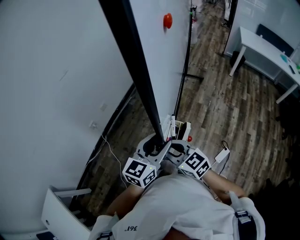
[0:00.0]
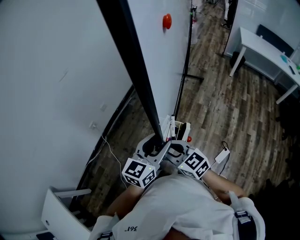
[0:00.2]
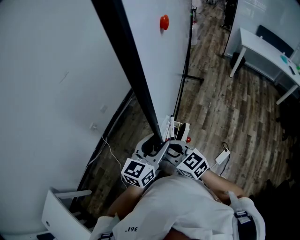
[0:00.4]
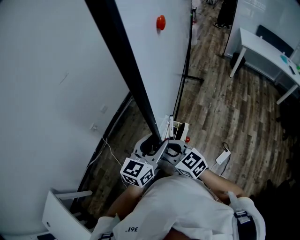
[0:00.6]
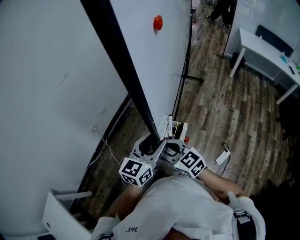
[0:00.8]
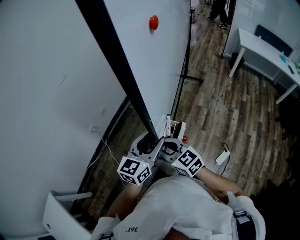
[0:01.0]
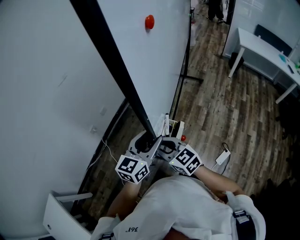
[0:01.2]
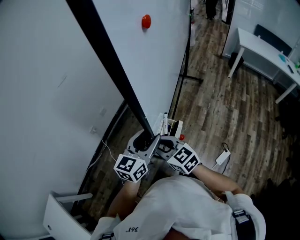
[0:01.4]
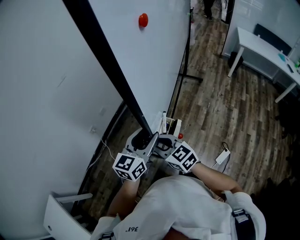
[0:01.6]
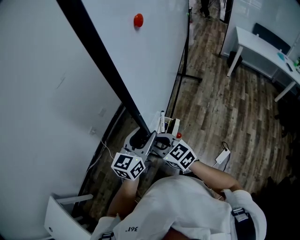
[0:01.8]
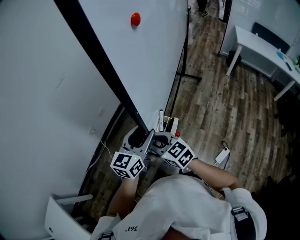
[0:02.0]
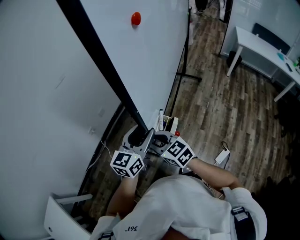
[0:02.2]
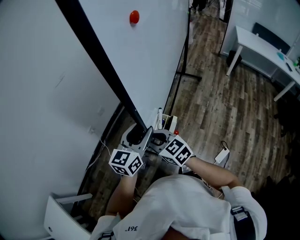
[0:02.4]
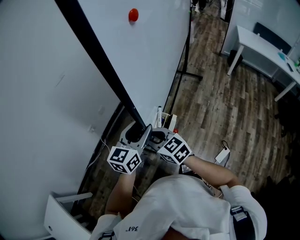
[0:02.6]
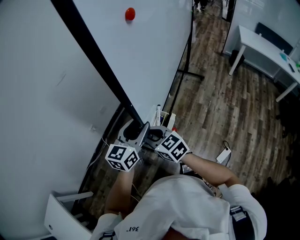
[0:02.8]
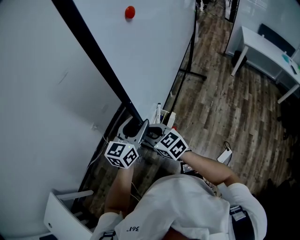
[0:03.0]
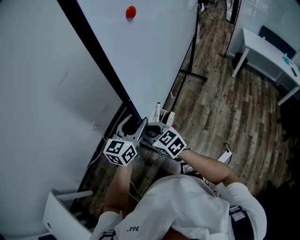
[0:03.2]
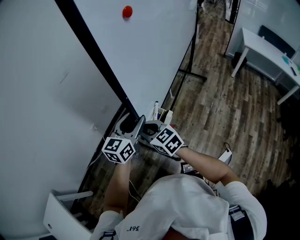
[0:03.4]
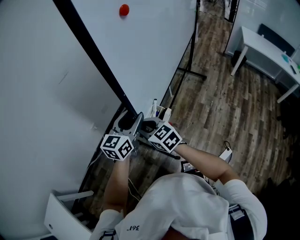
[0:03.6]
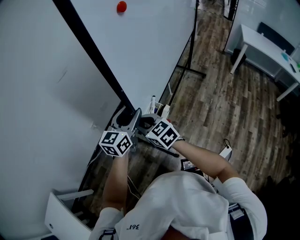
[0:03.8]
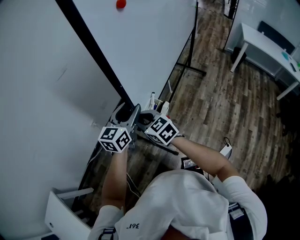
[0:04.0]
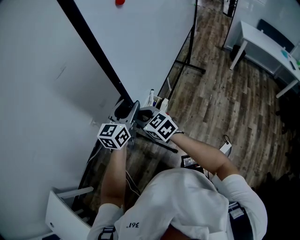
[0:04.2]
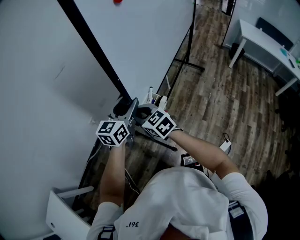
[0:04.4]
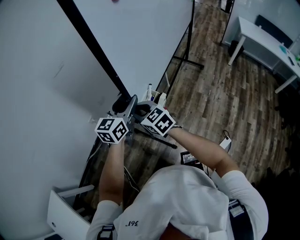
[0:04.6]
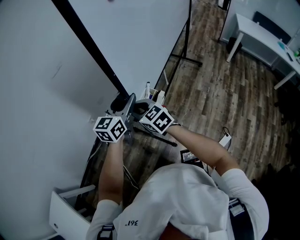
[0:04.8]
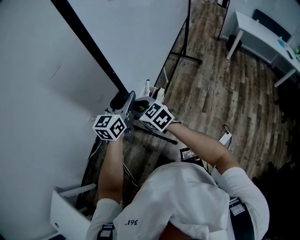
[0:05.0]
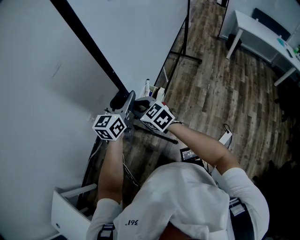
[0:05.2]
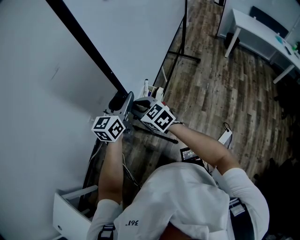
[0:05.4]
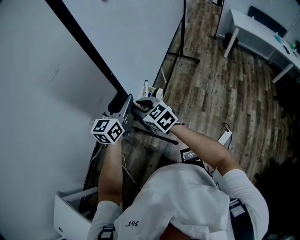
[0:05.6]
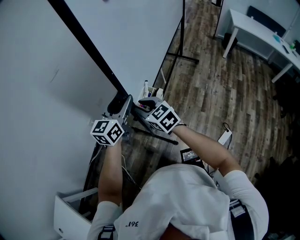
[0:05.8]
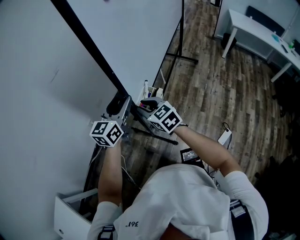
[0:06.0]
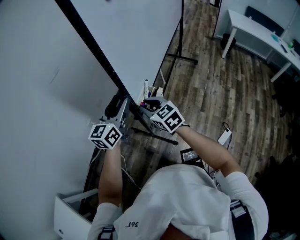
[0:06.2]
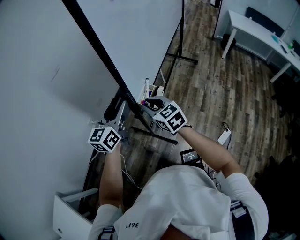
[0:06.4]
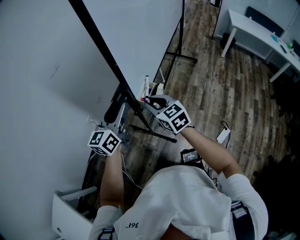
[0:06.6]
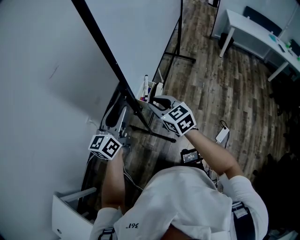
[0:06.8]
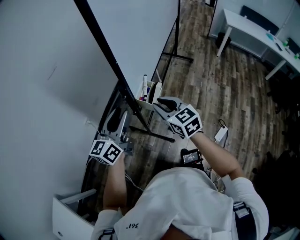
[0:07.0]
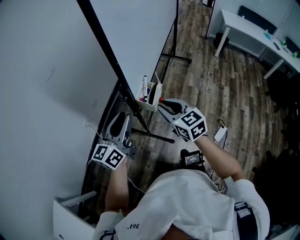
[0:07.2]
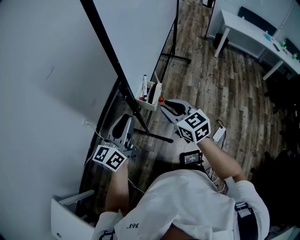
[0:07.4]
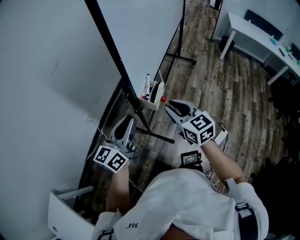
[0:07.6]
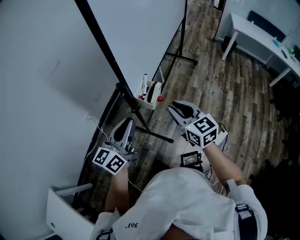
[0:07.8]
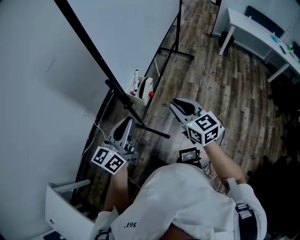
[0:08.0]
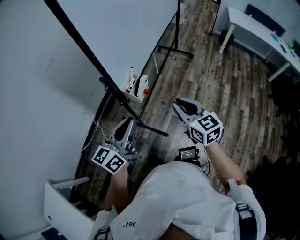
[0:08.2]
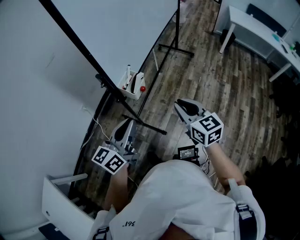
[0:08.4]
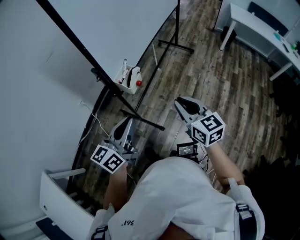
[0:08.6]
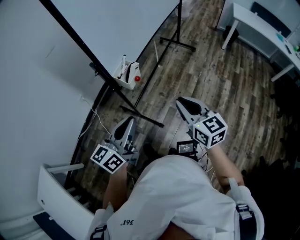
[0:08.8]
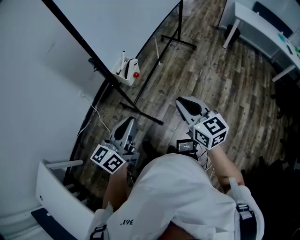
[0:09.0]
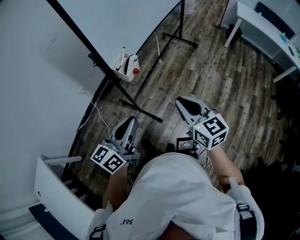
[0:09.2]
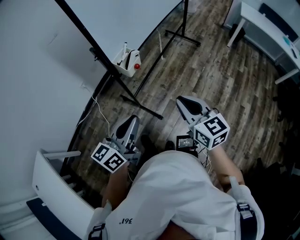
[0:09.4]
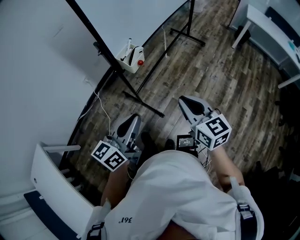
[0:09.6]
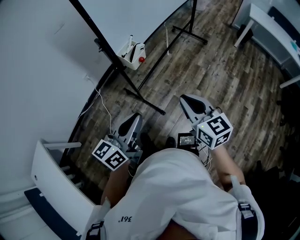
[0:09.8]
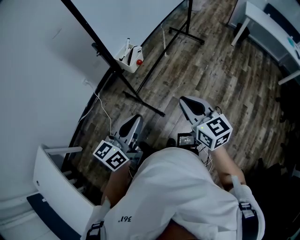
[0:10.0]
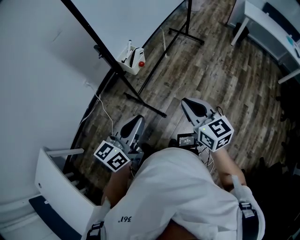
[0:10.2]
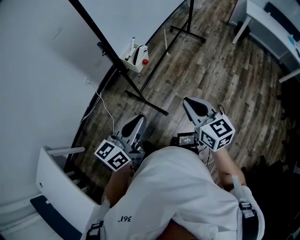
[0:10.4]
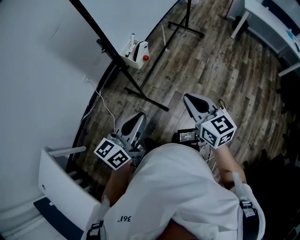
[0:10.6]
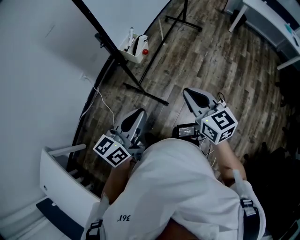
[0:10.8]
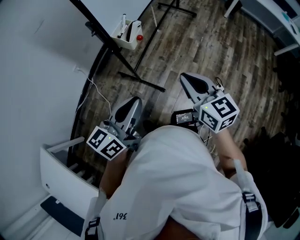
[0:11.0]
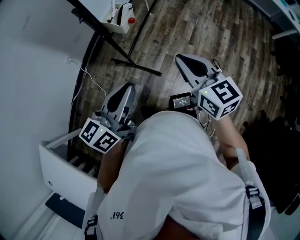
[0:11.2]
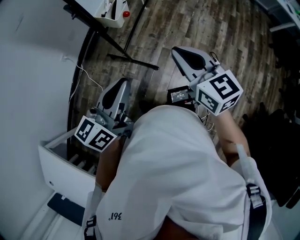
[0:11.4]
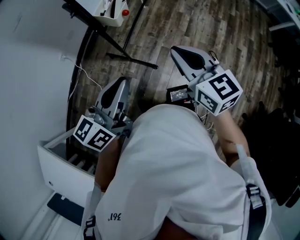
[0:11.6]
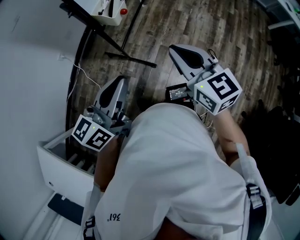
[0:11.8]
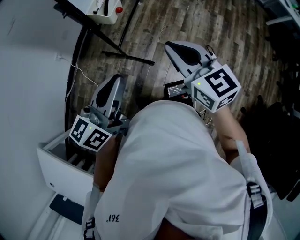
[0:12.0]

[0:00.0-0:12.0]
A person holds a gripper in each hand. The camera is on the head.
0:00.0 to 0:01.6: Both grippers travel together forward, about 5 cm.
0:01.6 to 0:03.0: The two grippers go approximately 5 cm forward.
0:03.0 to 0:04.4: Both grippers move forward, approximately 5 cm.
0:04.4 to 0:06.0: The grippers make only small movements.
0:06.0 to 0:07.6: The left gripper travels backward by about 15 cm, and closes. The right gripper goes roughly 15 cm to the right and backward.
0:07.6 to 0:09.0: The two grippers go some 20 cm to the right and backward.
0:09.0 to 0:10.4: The grippers make only small movements.
0:10.4 to 0:12.0: The right gripper goes roughly 5 cm to the left.

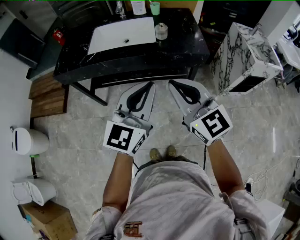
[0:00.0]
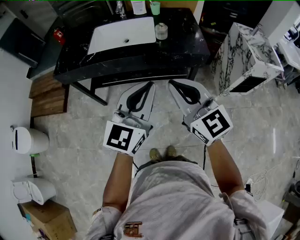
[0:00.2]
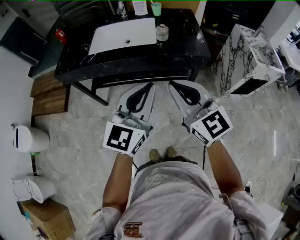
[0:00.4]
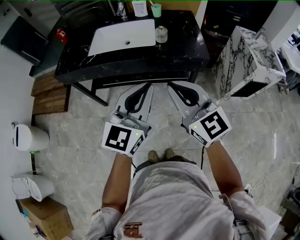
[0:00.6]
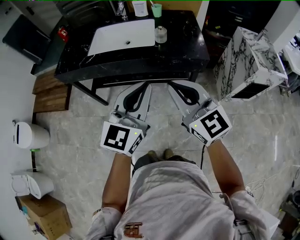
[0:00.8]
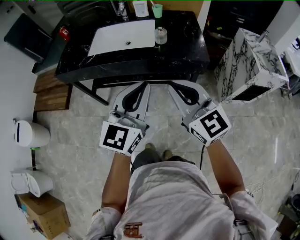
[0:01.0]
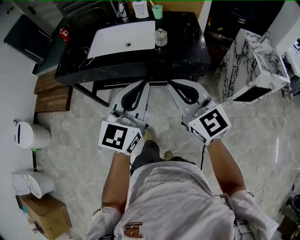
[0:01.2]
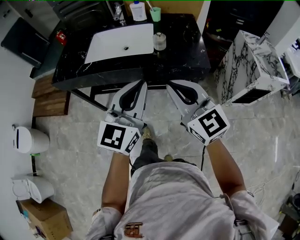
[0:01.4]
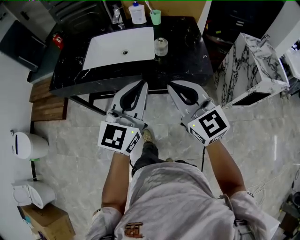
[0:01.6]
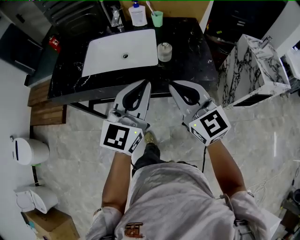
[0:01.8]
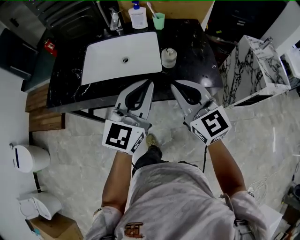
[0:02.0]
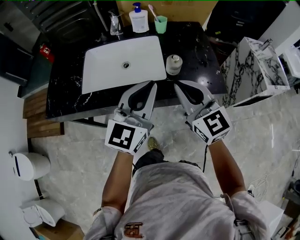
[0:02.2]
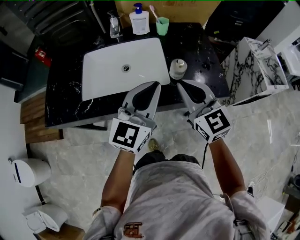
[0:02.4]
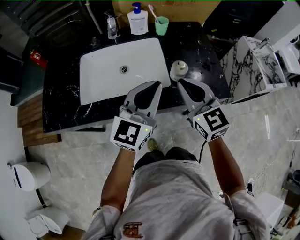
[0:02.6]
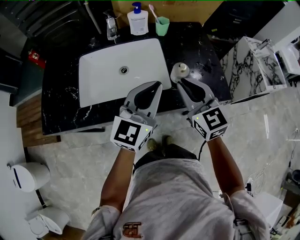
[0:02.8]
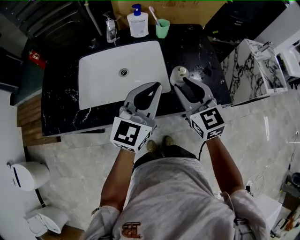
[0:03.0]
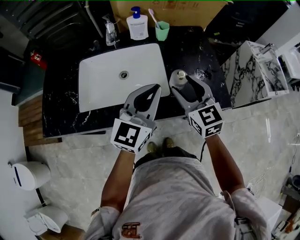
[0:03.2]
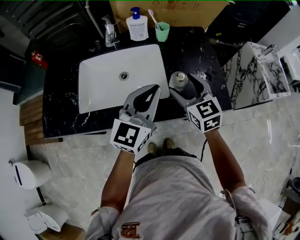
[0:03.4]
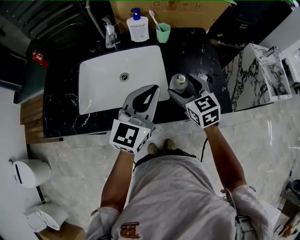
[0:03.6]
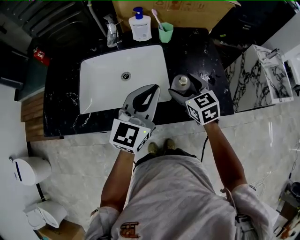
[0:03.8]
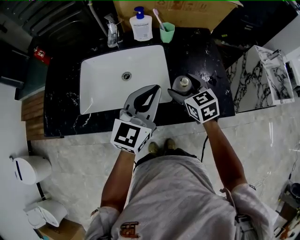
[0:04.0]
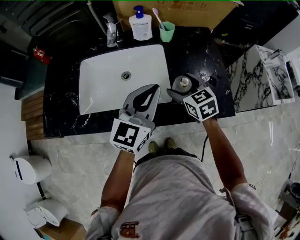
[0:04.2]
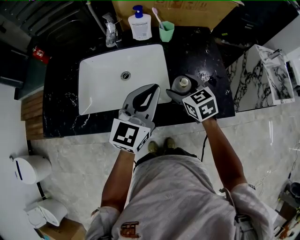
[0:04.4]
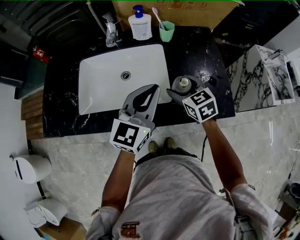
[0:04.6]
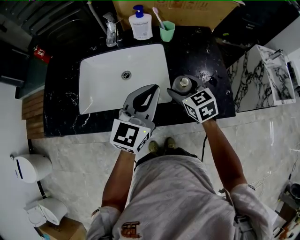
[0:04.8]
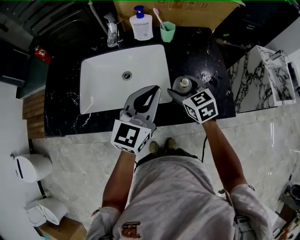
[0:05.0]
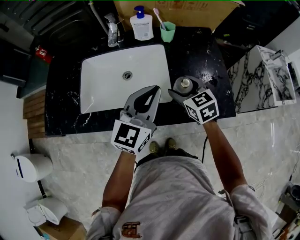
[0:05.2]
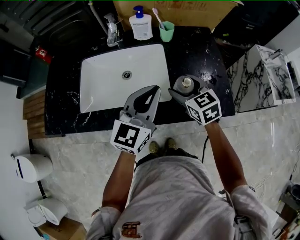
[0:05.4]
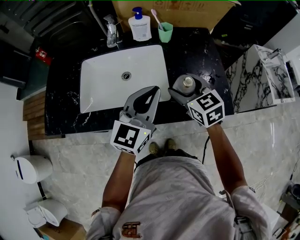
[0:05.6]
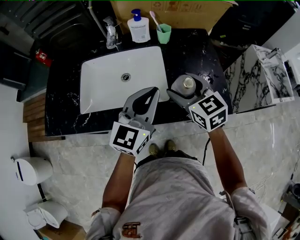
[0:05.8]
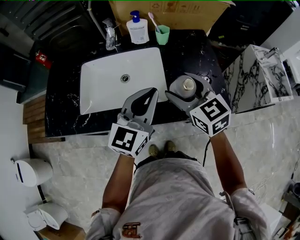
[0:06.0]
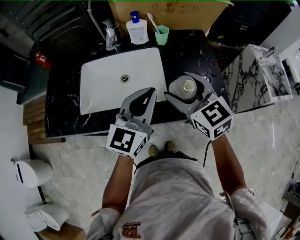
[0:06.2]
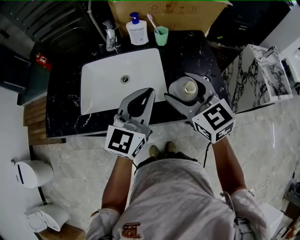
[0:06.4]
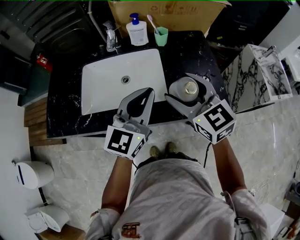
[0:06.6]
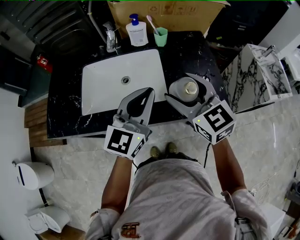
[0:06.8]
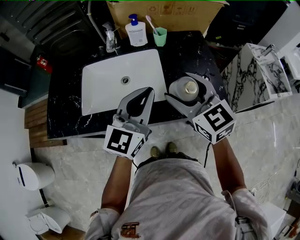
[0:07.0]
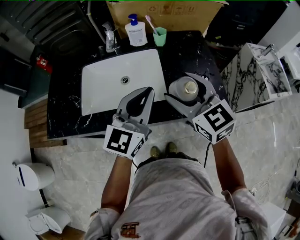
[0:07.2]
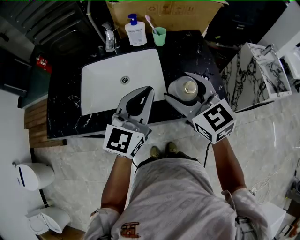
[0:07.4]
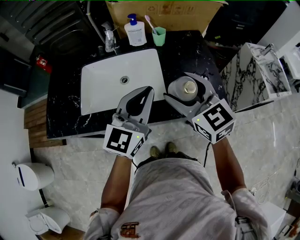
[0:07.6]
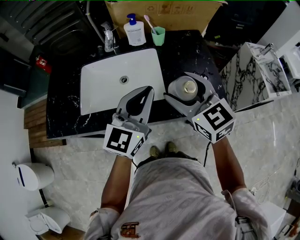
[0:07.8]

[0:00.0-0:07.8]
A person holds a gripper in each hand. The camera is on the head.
0:00.0 to 0:01.6: Both grippers travel together forward, about 10 cm.
0:01.6 to 0:03.2: Both grippers travel together forward, some 25 cm. The right gripper turns by roughly 20 degrees, and opens up.
0:03.2 to 0:04.6: The right gripper moves downward and forward, some 10 cm, and swivels roughly 20 degrees.
0:04.6 to 0:06.2: The left gripper moves approximately 5 cm, while the right gripper travels upward and backward by some 15 cm.
0:06.2 to 0:07.8: The grippers make only small movements.

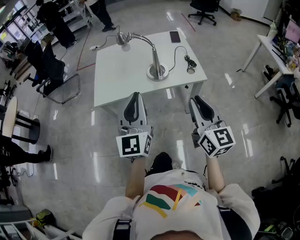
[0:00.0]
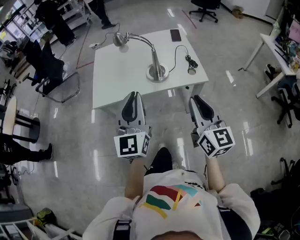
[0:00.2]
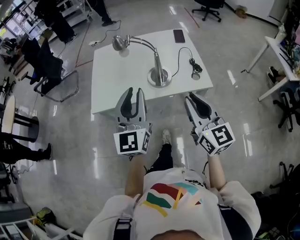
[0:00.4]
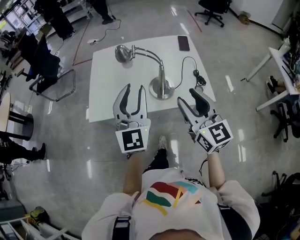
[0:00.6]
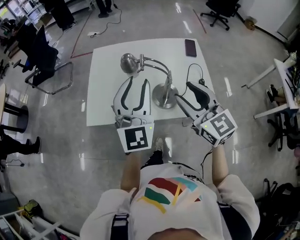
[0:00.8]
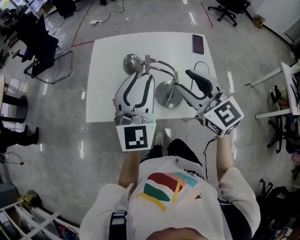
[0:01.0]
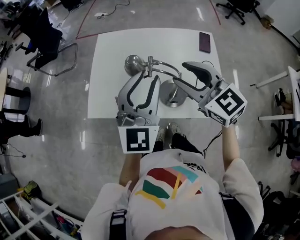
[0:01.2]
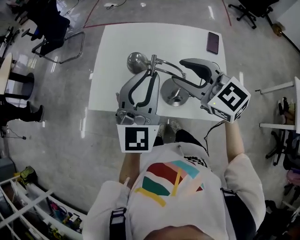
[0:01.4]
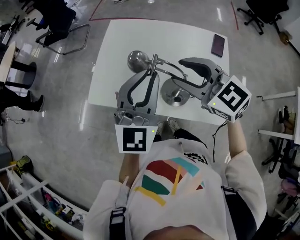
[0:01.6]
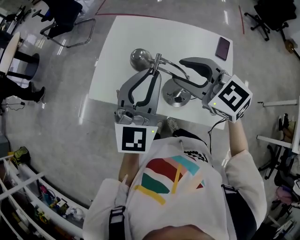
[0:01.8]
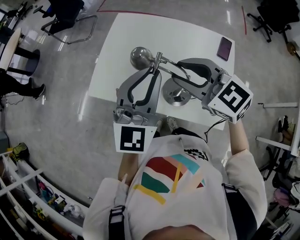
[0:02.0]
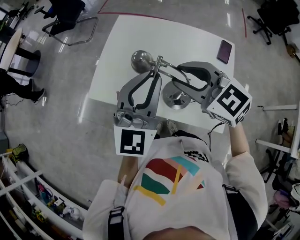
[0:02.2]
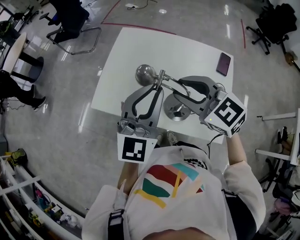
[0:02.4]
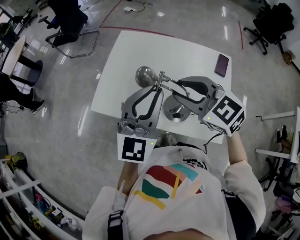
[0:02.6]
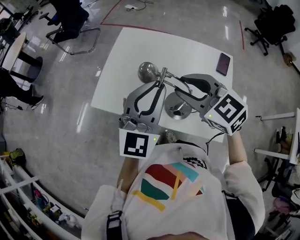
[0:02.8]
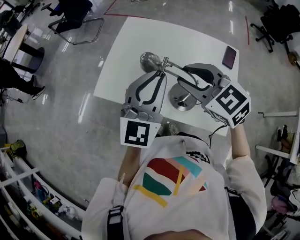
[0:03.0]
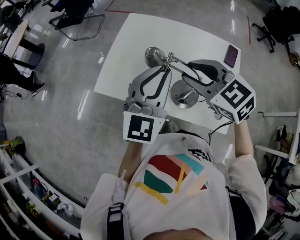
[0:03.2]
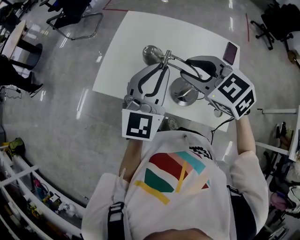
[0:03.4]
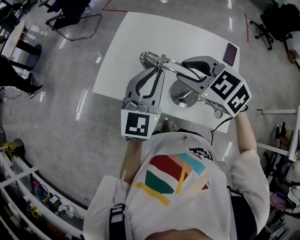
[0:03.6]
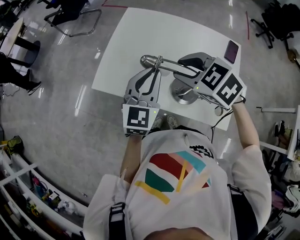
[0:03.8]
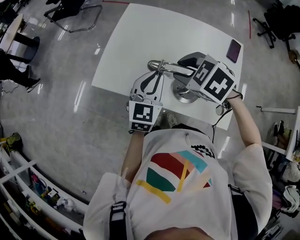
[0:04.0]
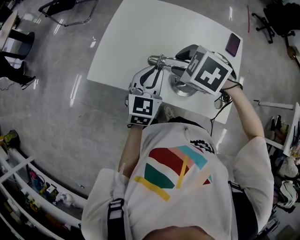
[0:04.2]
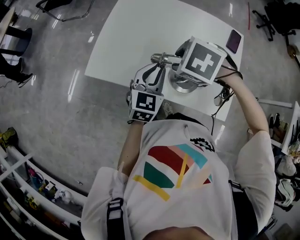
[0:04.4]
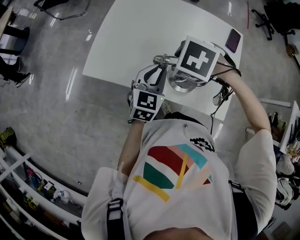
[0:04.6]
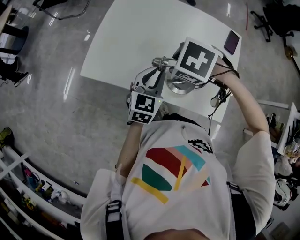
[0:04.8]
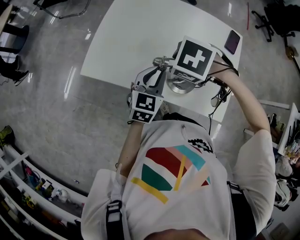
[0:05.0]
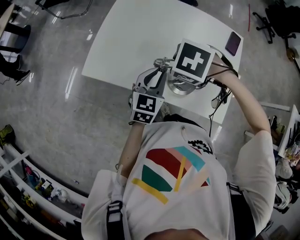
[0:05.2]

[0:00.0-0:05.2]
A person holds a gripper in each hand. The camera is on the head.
0:00.0 to 0:01.8: The right gripper changes place by approximately 50 cm, swivels approximately 70 degrees, and opens its fingers. The left gripper changes place by approximately 40 cm, and swivels approximately 20 degrees.
0:01.8 to 0:03.4: The grippers stay close to where they were, moving slightly.
0:03.4 to 0:05.2: The left gripper goes some 20 cm downward, and rotates approximately 30 degrees; the right gripper is displaced downward by some 15 cm, and angles its fingers downward, by roughly 40 degrees.
